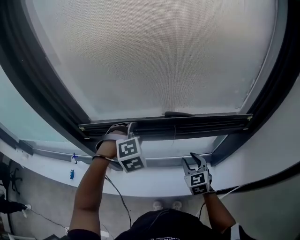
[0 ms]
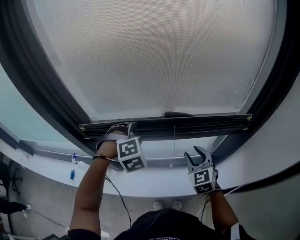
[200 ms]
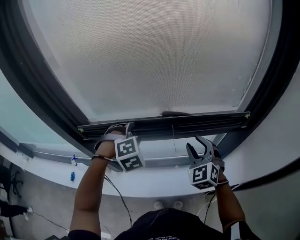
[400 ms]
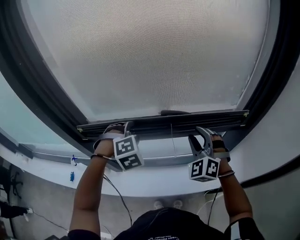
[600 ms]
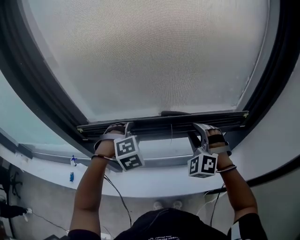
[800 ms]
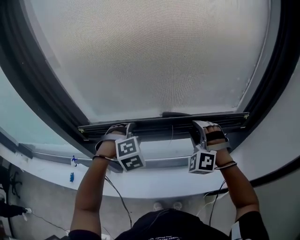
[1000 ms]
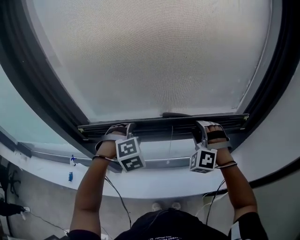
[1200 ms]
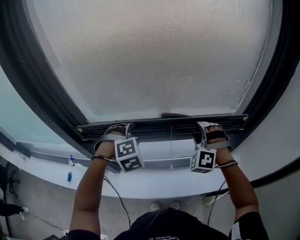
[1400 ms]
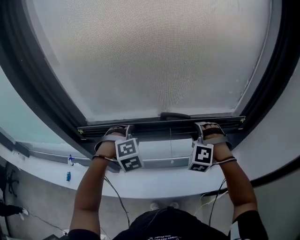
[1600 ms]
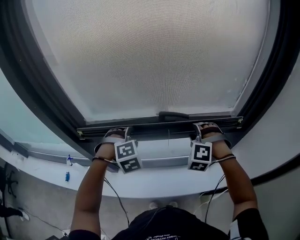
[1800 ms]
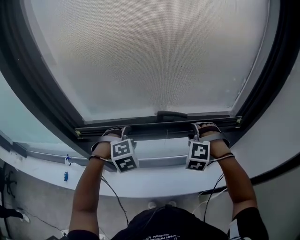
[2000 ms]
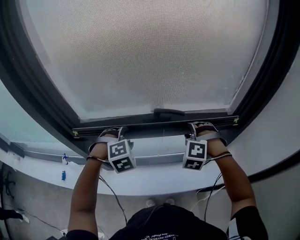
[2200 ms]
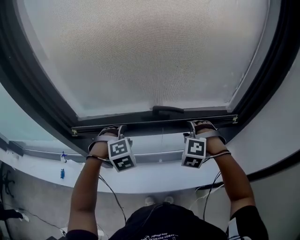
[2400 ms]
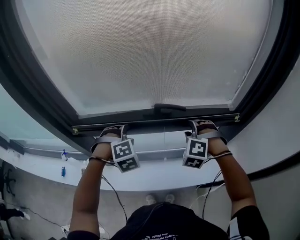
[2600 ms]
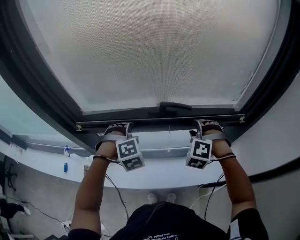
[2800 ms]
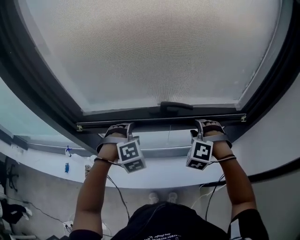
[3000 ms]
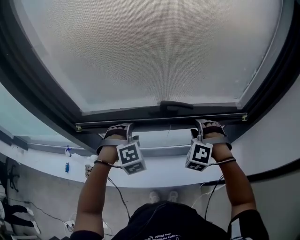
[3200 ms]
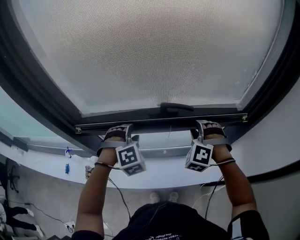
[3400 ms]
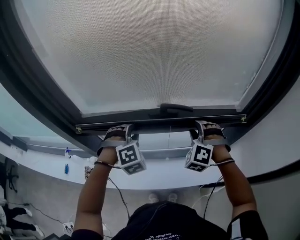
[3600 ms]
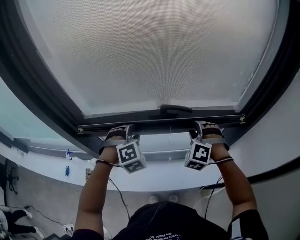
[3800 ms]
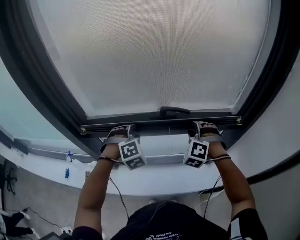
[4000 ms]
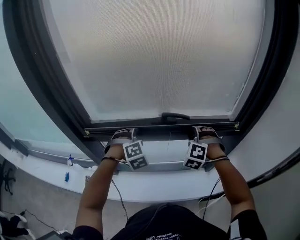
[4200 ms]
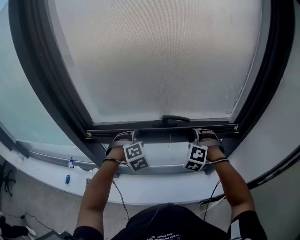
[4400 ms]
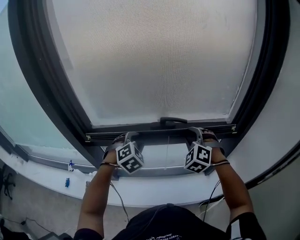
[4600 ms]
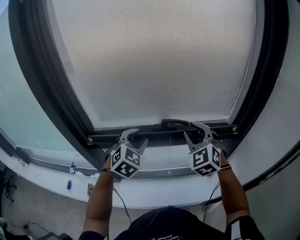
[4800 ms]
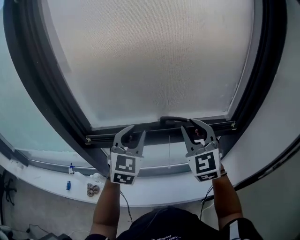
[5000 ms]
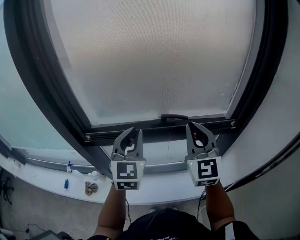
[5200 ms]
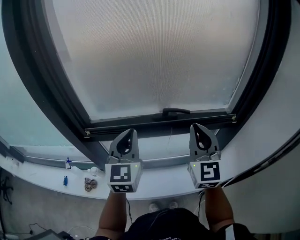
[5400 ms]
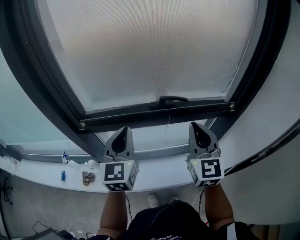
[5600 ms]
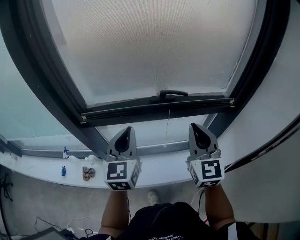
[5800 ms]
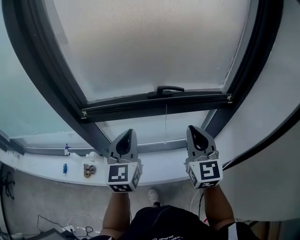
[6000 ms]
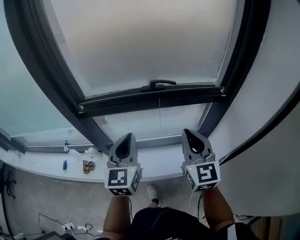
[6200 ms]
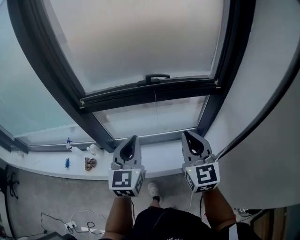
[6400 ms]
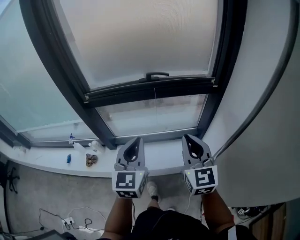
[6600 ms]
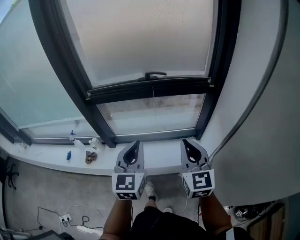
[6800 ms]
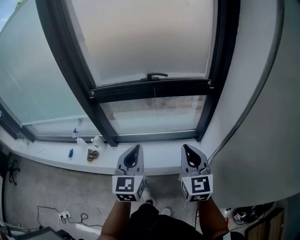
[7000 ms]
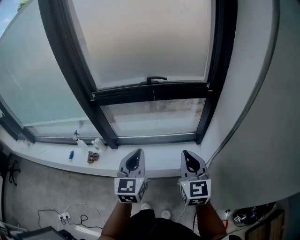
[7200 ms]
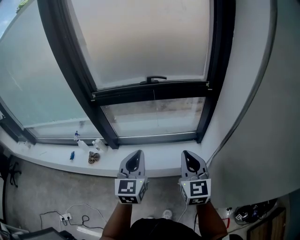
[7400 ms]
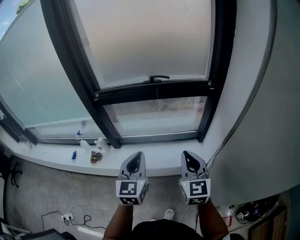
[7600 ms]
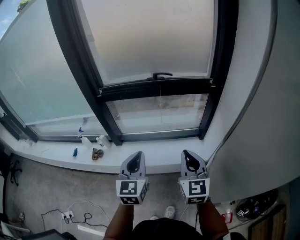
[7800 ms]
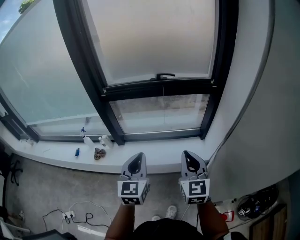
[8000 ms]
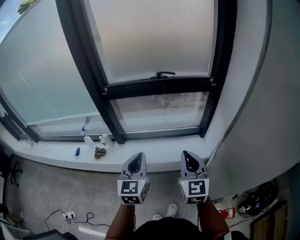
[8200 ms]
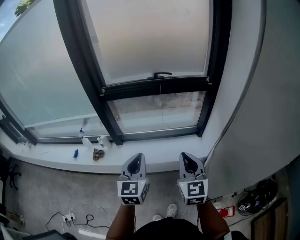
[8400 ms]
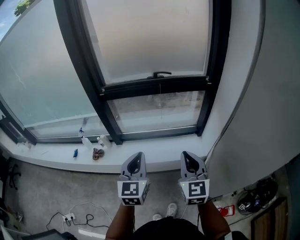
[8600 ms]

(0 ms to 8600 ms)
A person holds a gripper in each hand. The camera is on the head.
0 ms - 1400 ms: The right gripper is displaced upward and forward by roughly 15 cm, and rolls counterclockwise, seen from behind, by approximately 70 degrees.
1400 ms - 2800 ms: The left gripper is displaced downward by roughly 5 cm; the right gripper ends up about 5 cm from where it was.
2800 ms - 4400 ms: There are only small adjustments of the grippers.
4400 ms - 5800 ms: The left gripper is displaced upward and backward by roughly 15 cm, twists about 60 degrees counterclockwise, seen from behind, and closes up. Meanwhile the right gripper is displaced backward and upward by approximately 20 cm, rotates around the line of its fingers by about 70 degrees, clockwise from behind, and closes.
5800 ms - 7200 ms: The right gripper moves backward, approximately 25 cm, while the left gripper shifts roughly 30 cm backward and to the right.
7200 ms - 8600 ms: The grippers both shift backward and to the left by about 10 cm.

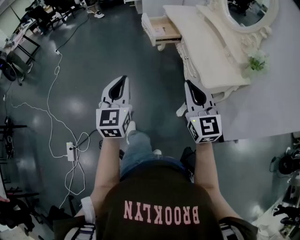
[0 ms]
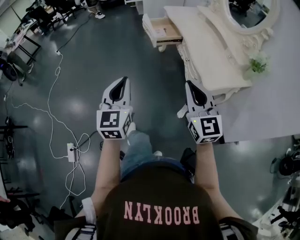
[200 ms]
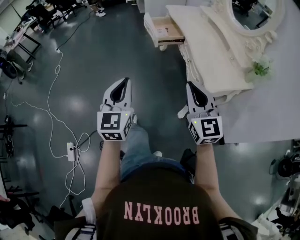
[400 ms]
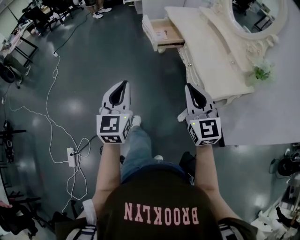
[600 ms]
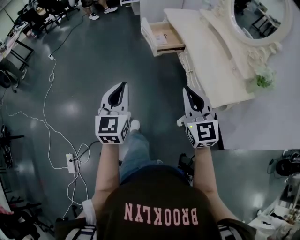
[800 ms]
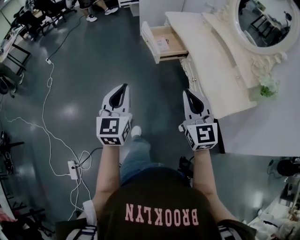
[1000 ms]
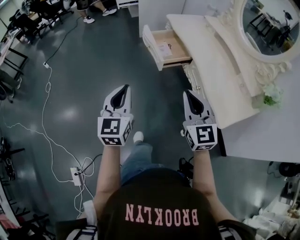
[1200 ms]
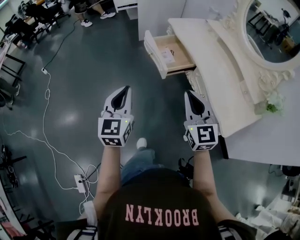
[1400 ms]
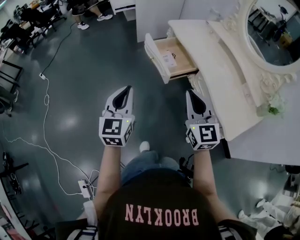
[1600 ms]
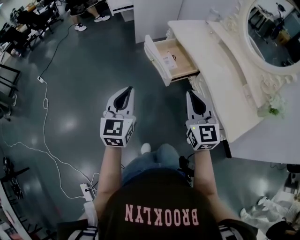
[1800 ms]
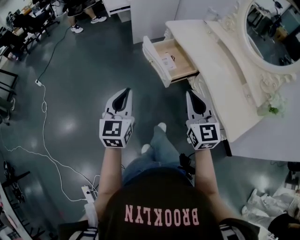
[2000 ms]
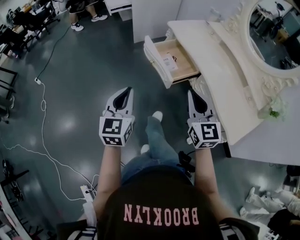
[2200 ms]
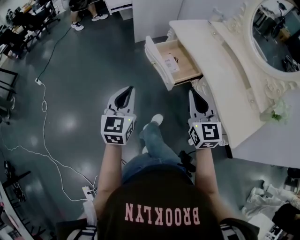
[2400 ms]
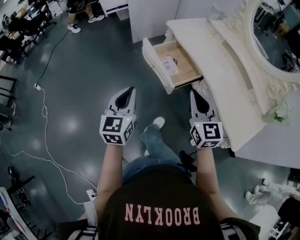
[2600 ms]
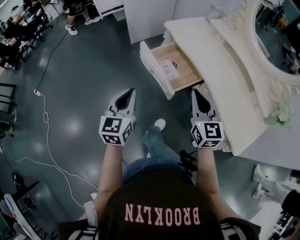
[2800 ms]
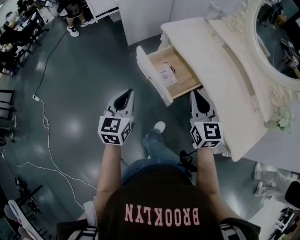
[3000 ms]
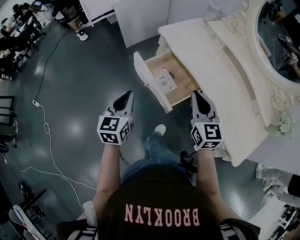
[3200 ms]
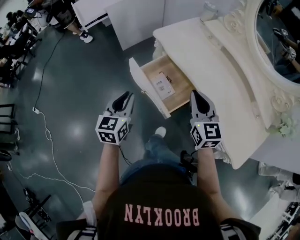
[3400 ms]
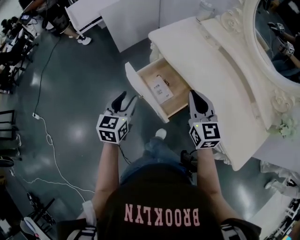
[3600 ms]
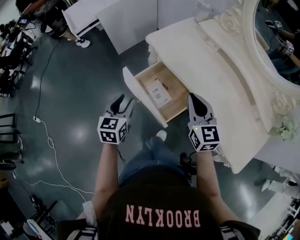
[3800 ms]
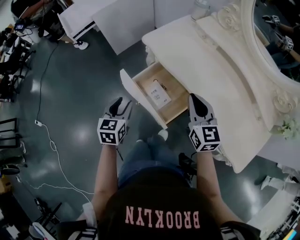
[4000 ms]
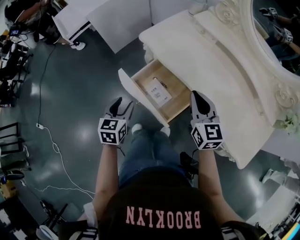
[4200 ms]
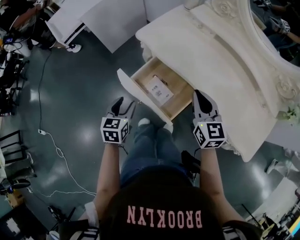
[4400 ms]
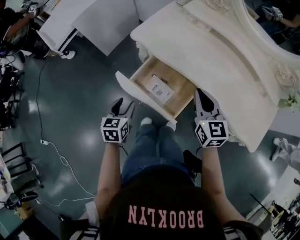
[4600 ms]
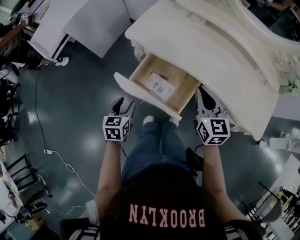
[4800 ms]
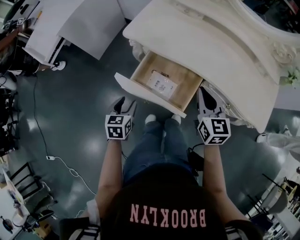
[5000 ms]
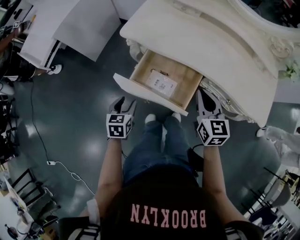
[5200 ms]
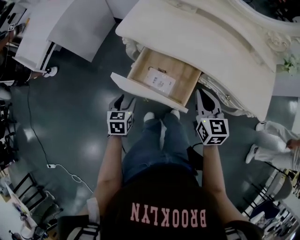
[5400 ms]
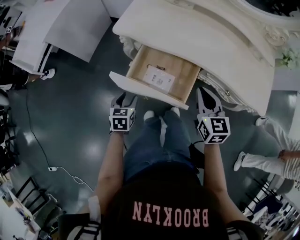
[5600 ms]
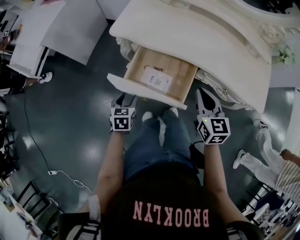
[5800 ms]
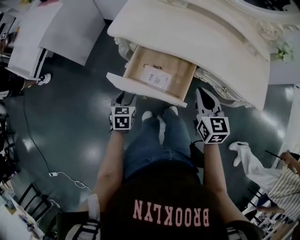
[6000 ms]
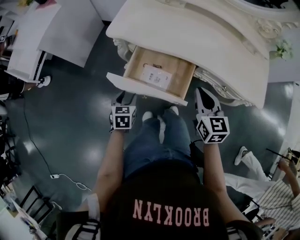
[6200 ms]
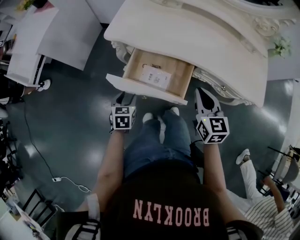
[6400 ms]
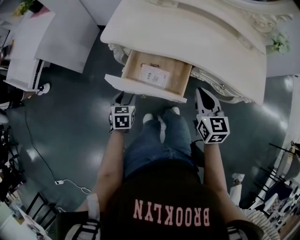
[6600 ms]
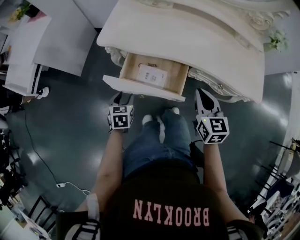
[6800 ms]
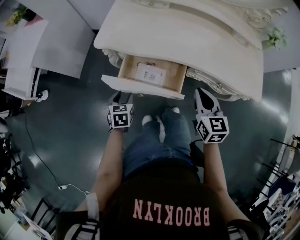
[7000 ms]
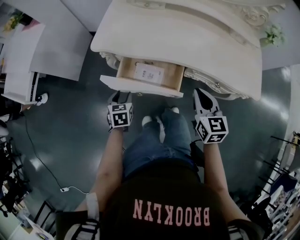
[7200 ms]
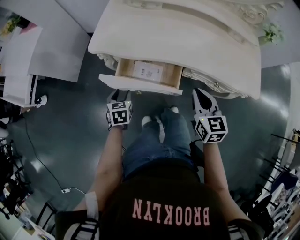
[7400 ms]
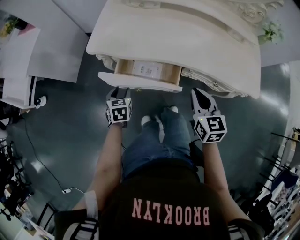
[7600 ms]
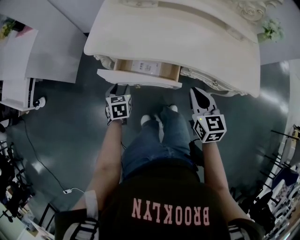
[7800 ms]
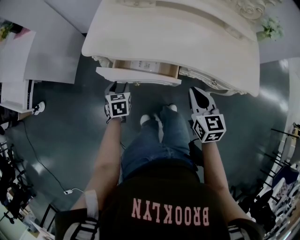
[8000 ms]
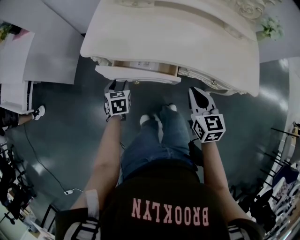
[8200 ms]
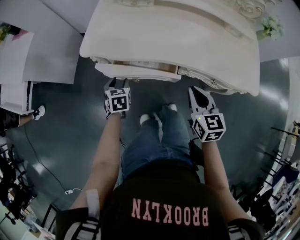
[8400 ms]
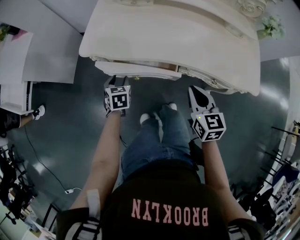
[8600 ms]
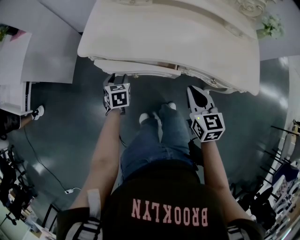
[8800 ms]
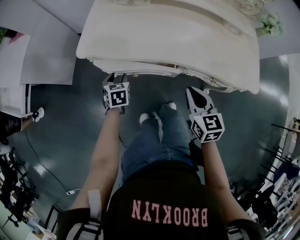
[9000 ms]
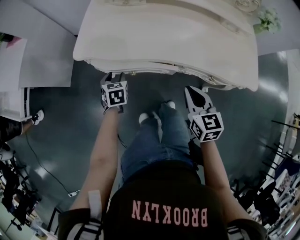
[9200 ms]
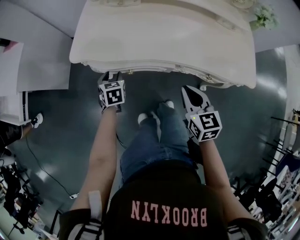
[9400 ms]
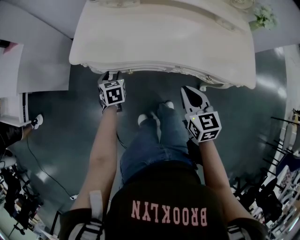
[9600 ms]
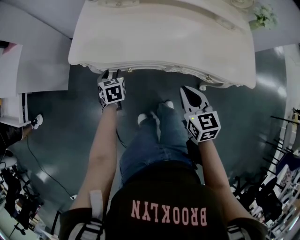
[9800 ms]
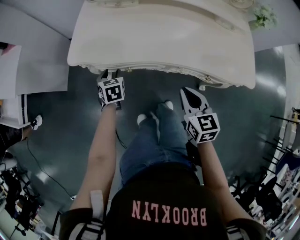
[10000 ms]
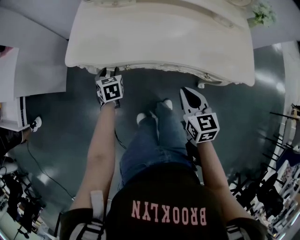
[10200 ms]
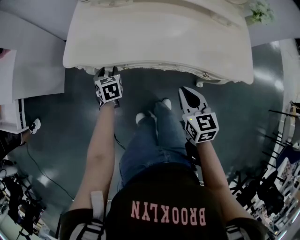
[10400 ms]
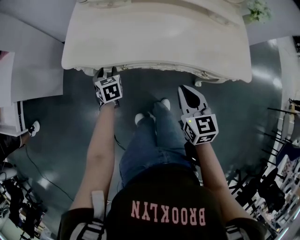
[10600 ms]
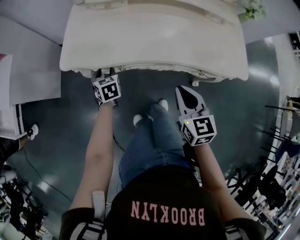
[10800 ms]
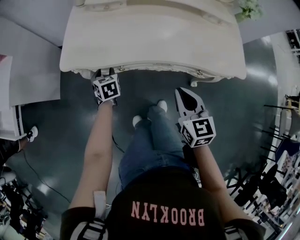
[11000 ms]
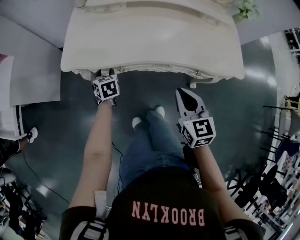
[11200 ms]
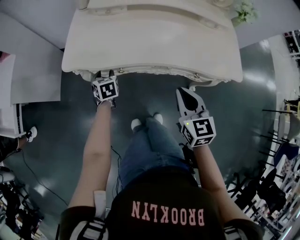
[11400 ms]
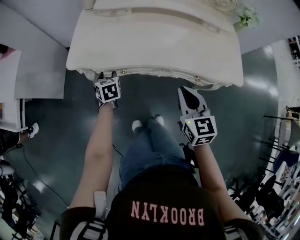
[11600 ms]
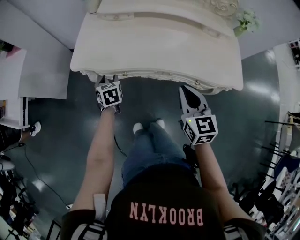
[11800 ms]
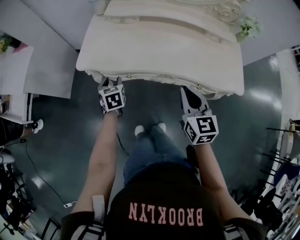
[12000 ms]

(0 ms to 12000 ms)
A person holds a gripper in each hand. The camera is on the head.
0 ms - 1600 ms: Both grippers move forward, roughly 40 cm.
1600 ms - 3000 ms: The grippers both shift forward by roughly 20 cm.
3000 ms - 4400 ms: The left gripper is displaced forward and downward by some 20 cm, turns by about 30 degrees, and opens its fingers; the right gripper is displaced forward by approximately 15 cm.
4400 ms - 6000 ms: The right gripper shifts about 10 cm backward and downward, and rotates roughly 30 degrees. The left gripper shifts some 10 cm downward, and swivels approximately 20 degrees.
6000 ms - 7600 ms: The left gripper heads forward, covering about 10 cm. The right gripper shifts by about 5 cm.
7600 ms - 9000 ms: The left gripper moves forward, approximately 10 cm.
9000 ms - 10400 ms: The left gripper shifts by roughly 5 cm.
10400 ms - 12000 ms: The grippers both shift upward by approximately 10 cm.

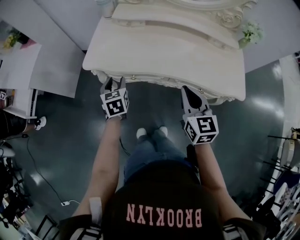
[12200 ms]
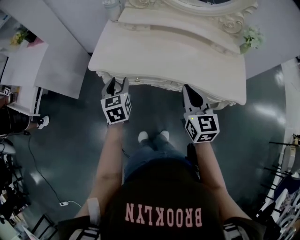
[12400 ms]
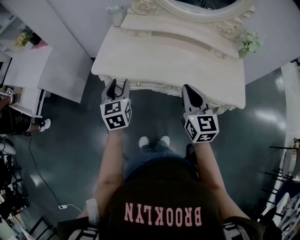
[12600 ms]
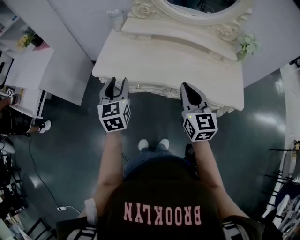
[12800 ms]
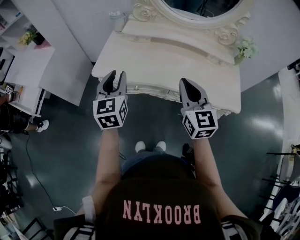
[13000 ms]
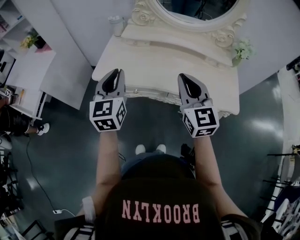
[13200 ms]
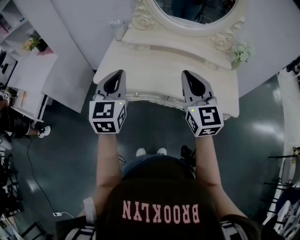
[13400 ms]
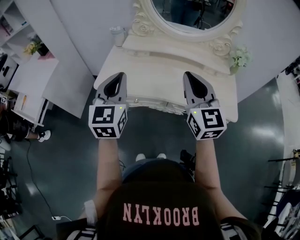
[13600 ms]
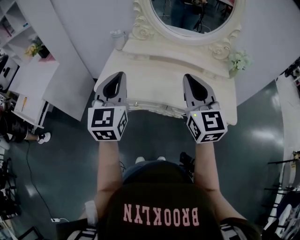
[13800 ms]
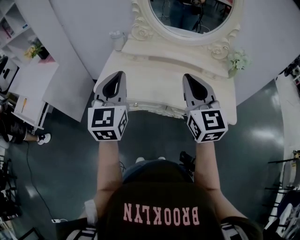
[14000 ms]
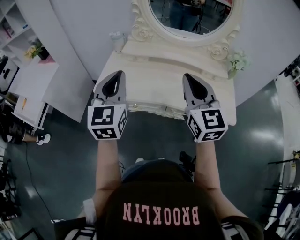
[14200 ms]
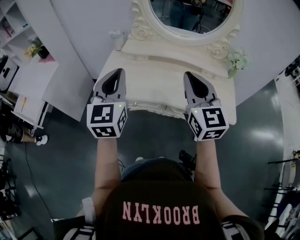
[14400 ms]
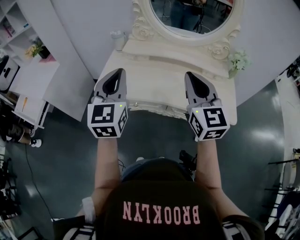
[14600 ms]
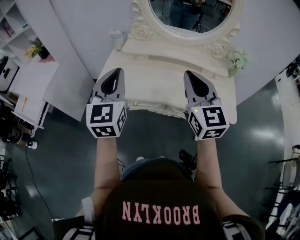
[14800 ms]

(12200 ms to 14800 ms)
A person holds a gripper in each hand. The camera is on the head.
12200 ms - 13400 ms: The right gripper heads upward, covering some 15 cm, and changes its angle by some 20 degrees. The left gripper shifts roughly 25 cm upward, rotates about 30 degrees, and closes up.
13400 ms - 14800 ms: The left gripper is displaced upward by some 5 cm.
